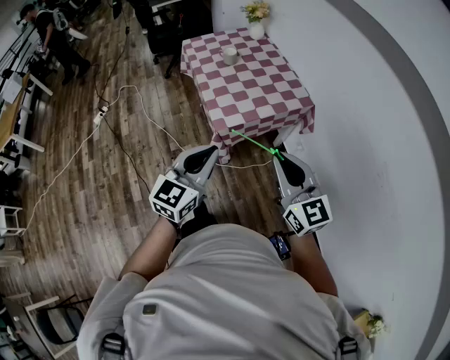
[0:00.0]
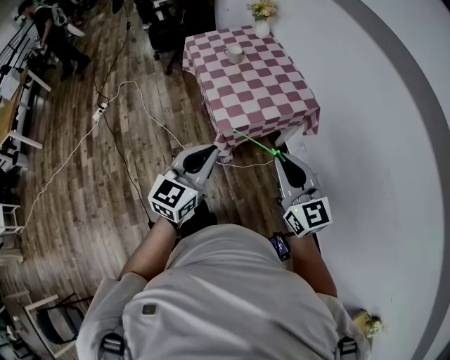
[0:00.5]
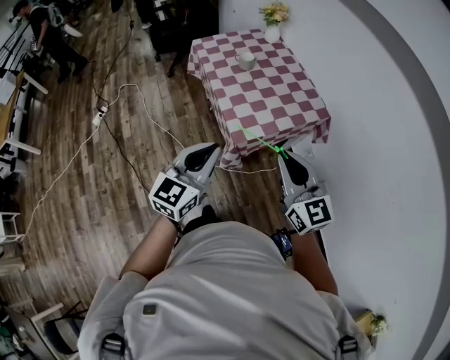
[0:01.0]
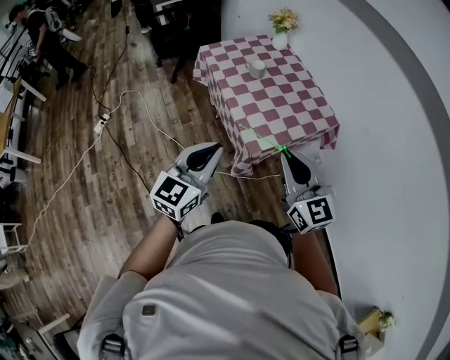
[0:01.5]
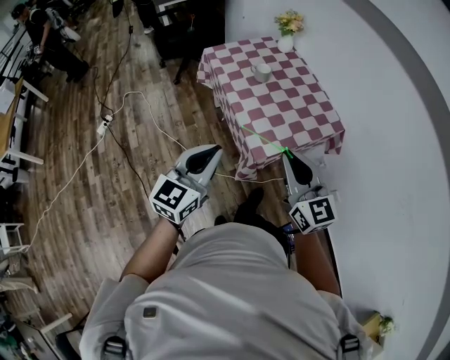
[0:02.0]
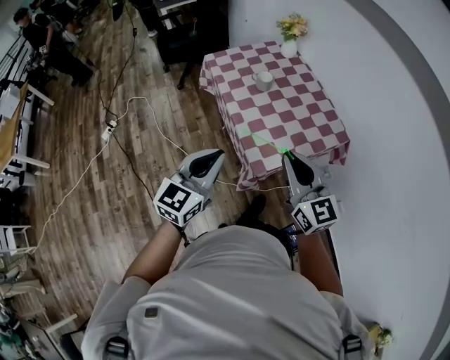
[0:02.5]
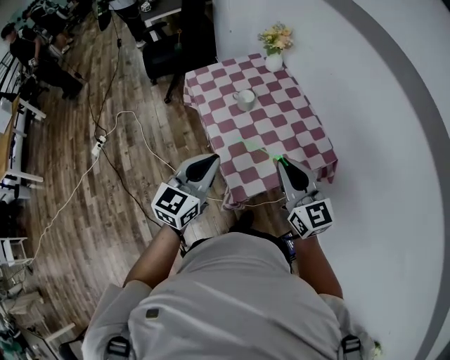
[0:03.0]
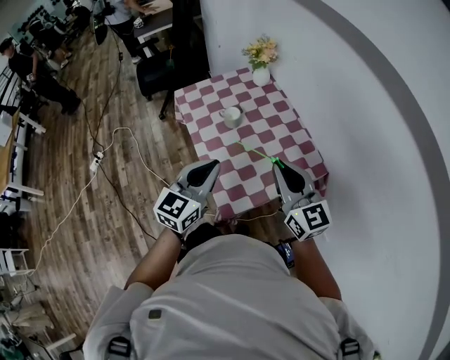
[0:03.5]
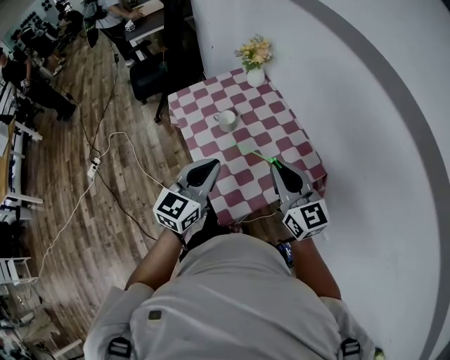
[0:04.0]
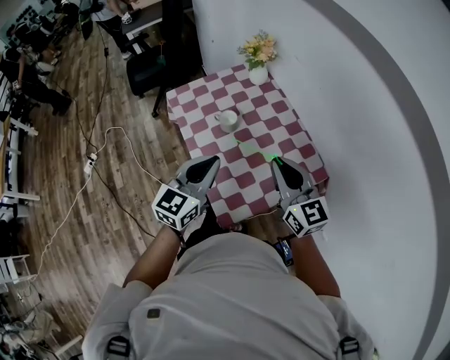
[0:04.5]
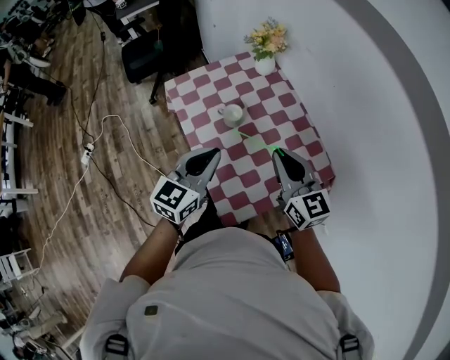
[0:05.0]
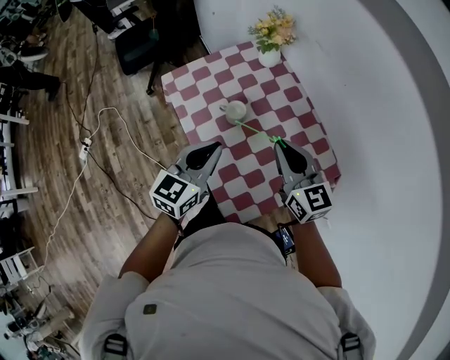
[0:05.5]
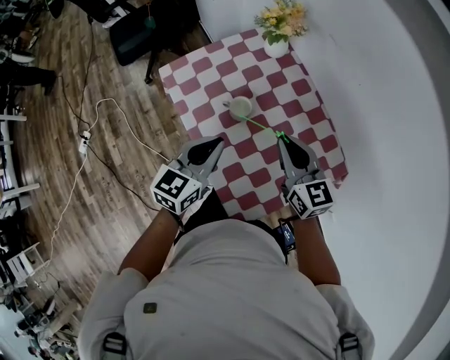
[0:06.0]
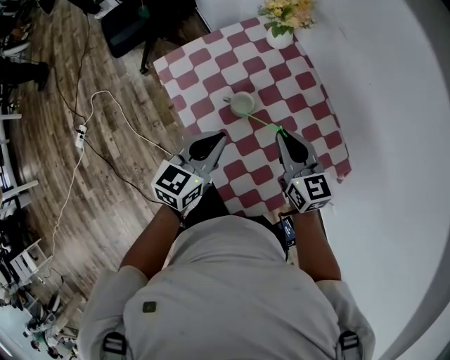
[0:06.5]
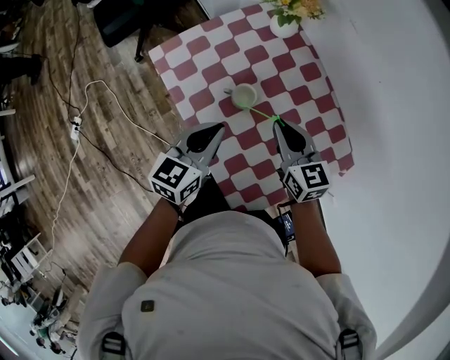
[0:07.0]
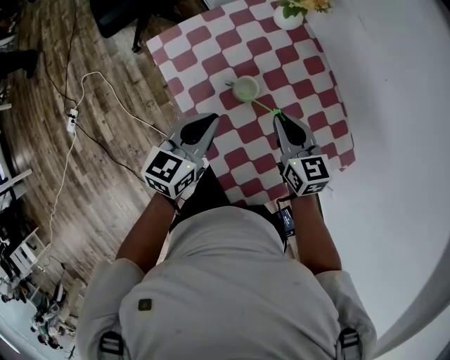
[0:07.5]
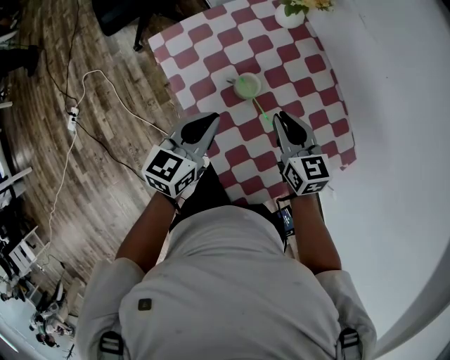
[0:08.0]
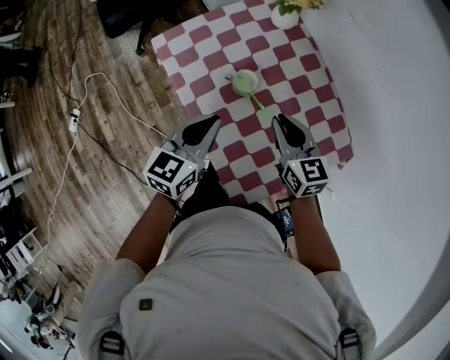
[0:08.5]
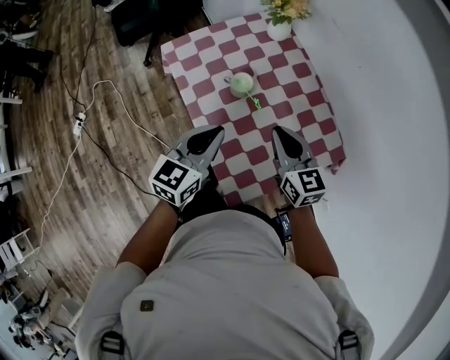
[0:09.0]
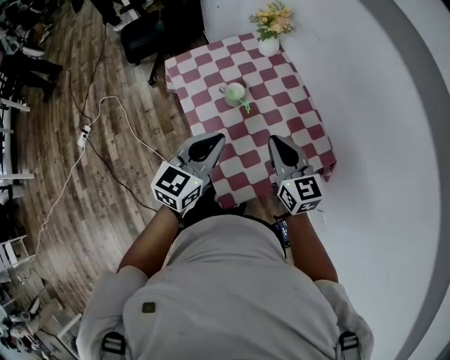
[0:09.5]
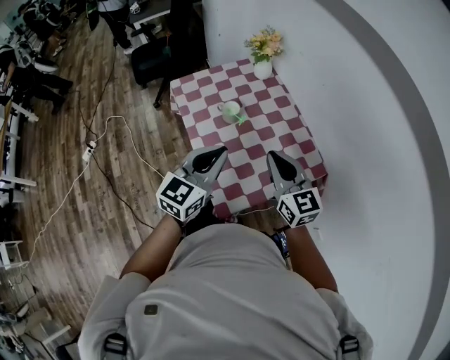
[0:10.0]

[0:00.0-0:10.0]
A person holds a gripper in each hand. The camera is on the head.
0:00.0 to 0:02.0: The grippers both shift to the left and forward by some 25 cm.
0:02.0 to 0:04.0: The two grippers go approximately 30 cm forward and to the right.
0:04.0 to 0:06.0: Both grippers move forward and downward, some 20 cm.
0:06.0 to 0:08.0: The right gripper heads downward, covering approximately 10 cm. Meanwhile the left gripper moves downward, roughly 5 cm.
0:08.0 to 0:10.0: The right gripper heads backward and upward, covering some 25 cm, and swivels approximately 20 degrees. Meanwhile the left gripper is displaced backward, upward and to the right by approximately 30 cm, and rotates roughly 20 degrees.

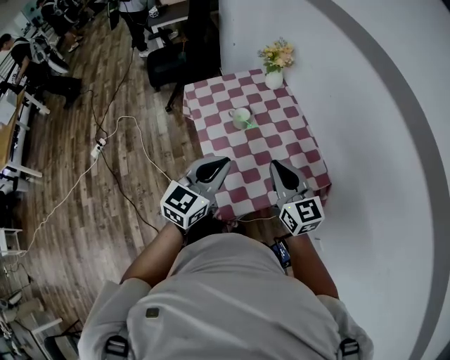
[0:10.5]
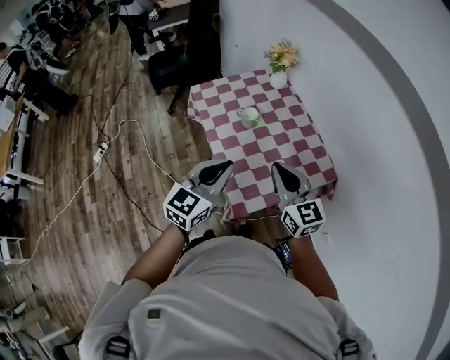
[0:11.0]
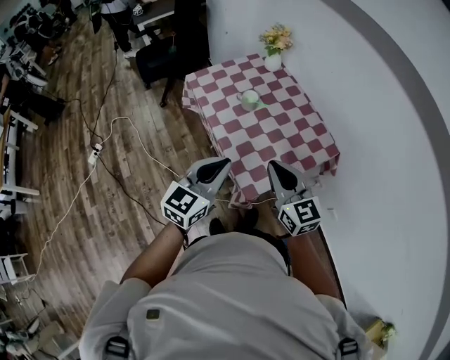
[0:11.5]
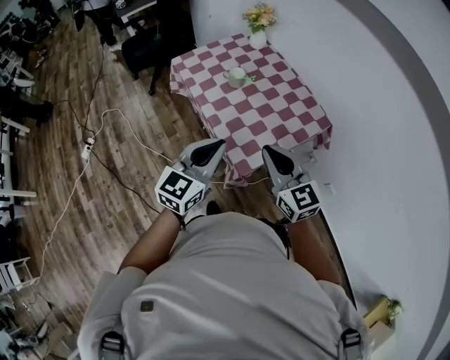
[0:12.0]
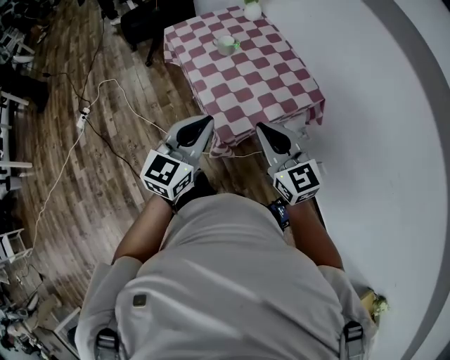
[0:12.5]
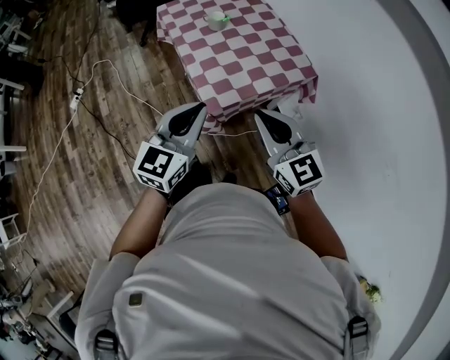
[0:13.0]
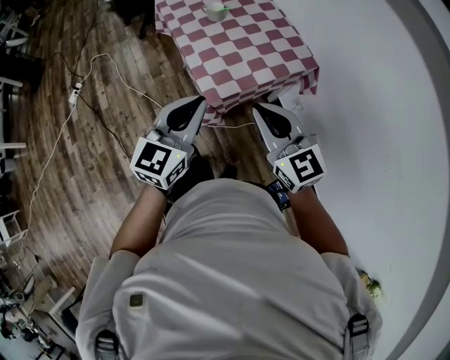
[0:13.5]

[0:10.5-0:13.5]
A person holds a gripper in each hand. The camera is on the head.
0:10.5 to 0:12.0: Both grippers move backward and to the left, roughly 15 cm.
0:12.0 to 0:13.5: The grippers both shift backward and to the right by about 15 cm.

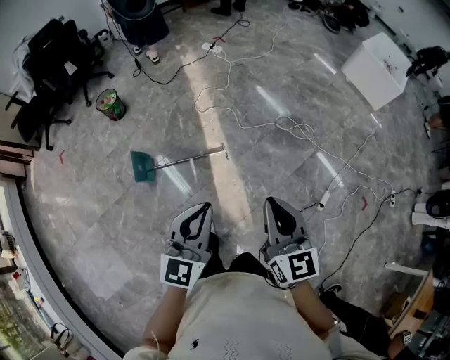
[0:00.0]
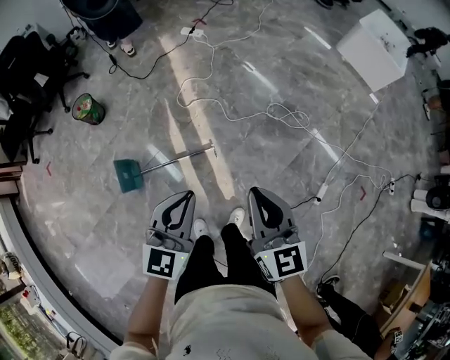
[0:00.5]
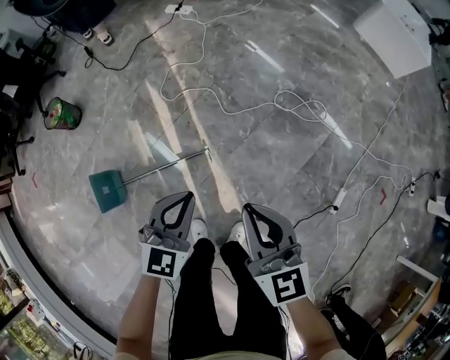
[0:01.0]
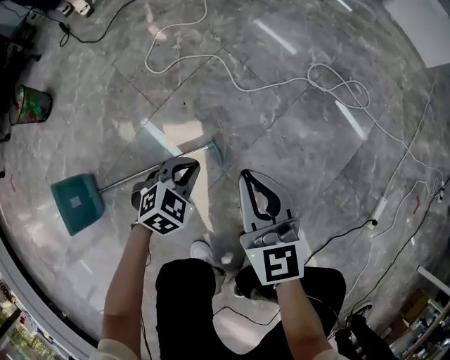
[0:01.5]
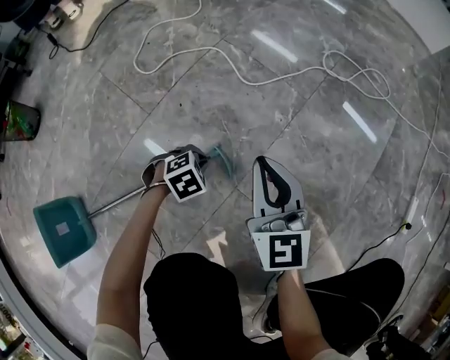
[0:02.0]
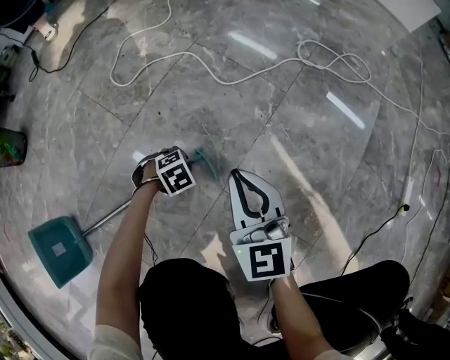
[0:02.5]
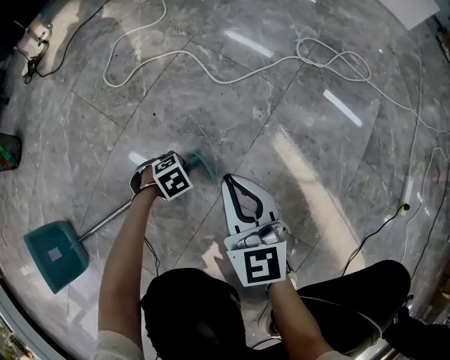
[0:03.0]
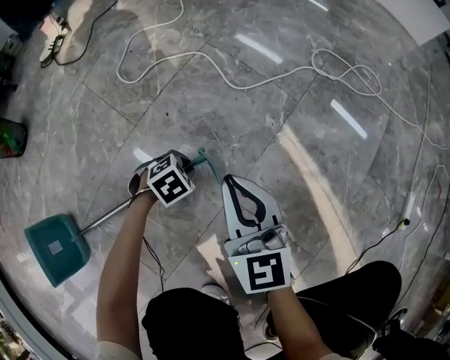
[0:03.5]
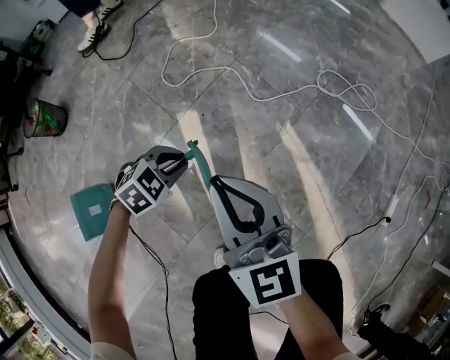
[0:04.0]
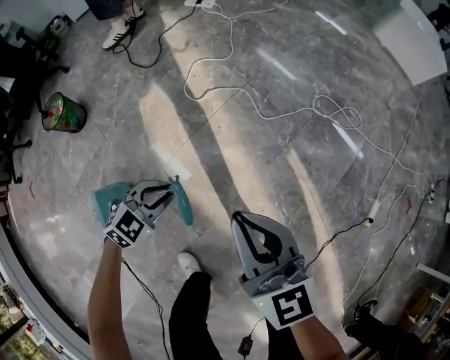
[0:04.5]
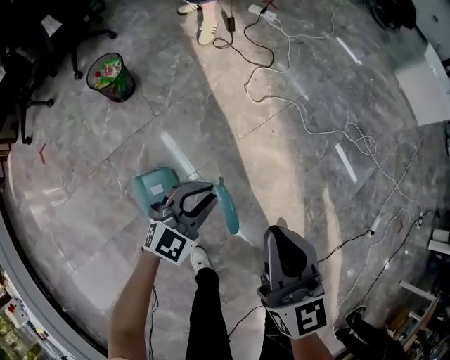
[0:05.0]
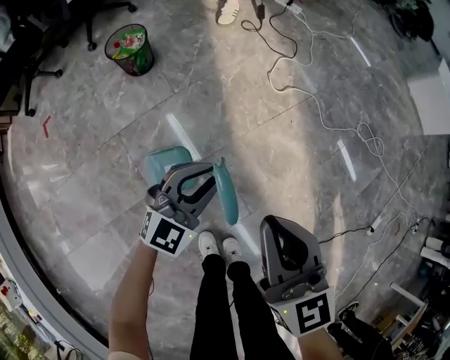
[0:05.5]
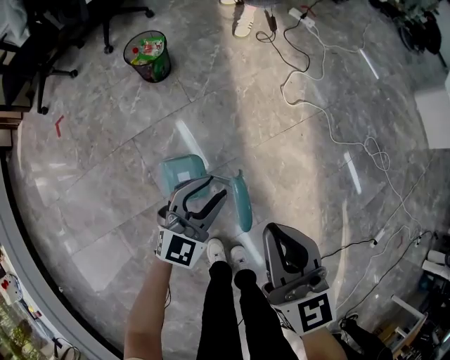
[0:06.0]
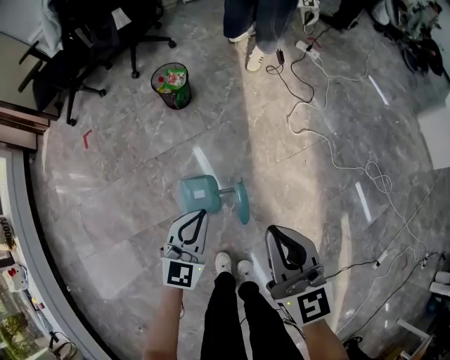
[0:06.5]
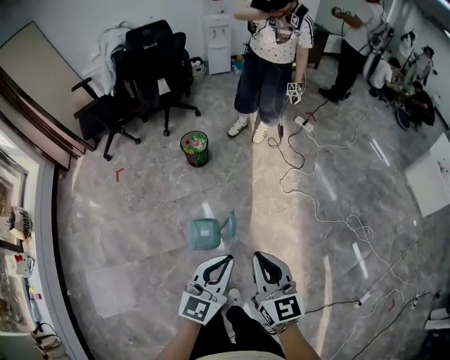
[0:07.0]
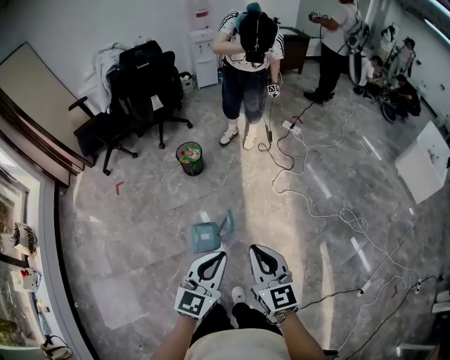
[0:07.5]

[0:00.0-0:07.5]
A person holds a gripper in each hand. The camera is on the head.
0:00.0 to 0:02.0: The pair of grippers is taken roughly 40 cm. Both grippers move downward, some 90 cm. The left gripper tilts its fingers roughly 70 degrees downward.
0:02.0 to 0:04.0: Both grippers travel together upward, about 25 cm.
0:04.0 to 0:05.5: The two grippers travel together, to the left and backward, some 50 cm. The two grippers go some 25 cm upward. The left gripper points its fingers approximately 50 degrees further upward.
0:05.5 to 0:07.5: The two grippers go roughly 40 cm upward and backward. The left gripper rotates some 30 degrees.

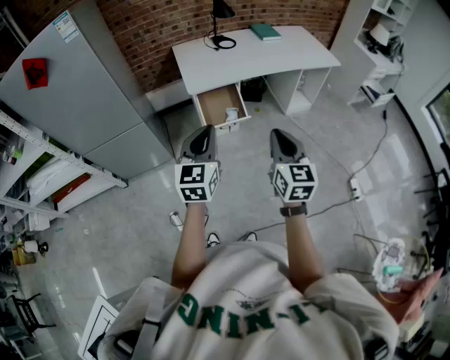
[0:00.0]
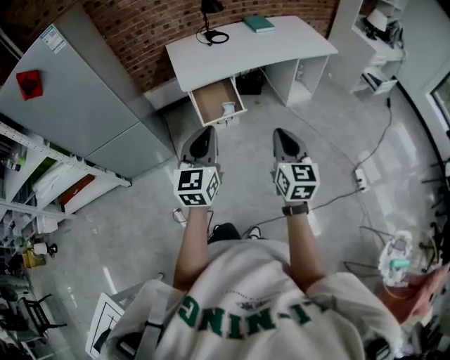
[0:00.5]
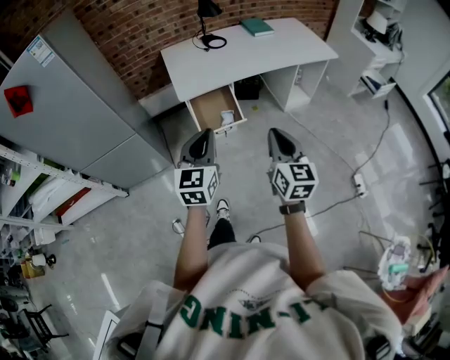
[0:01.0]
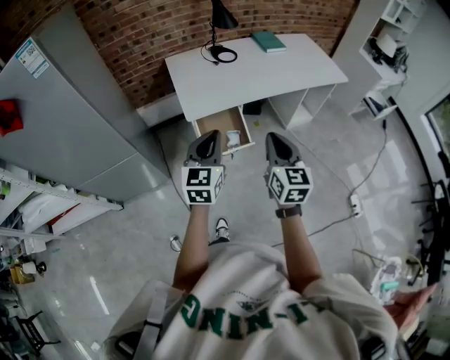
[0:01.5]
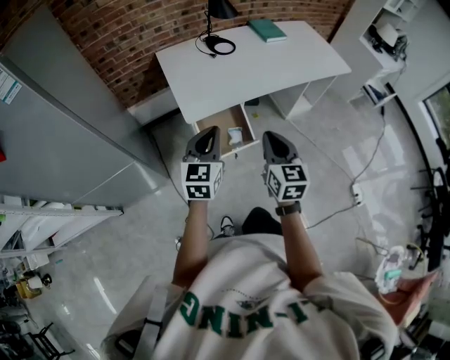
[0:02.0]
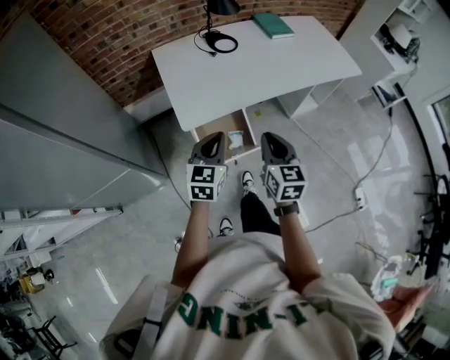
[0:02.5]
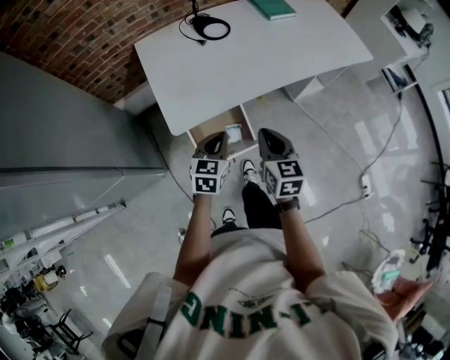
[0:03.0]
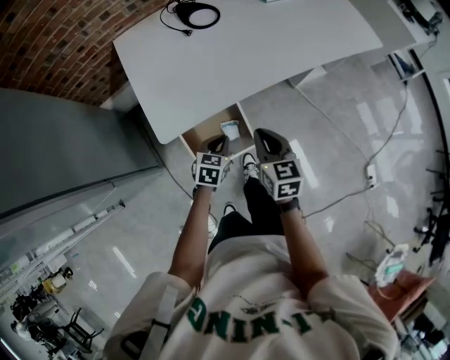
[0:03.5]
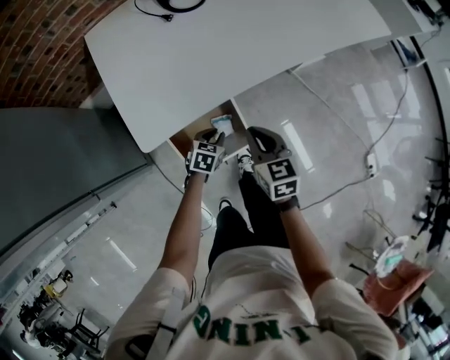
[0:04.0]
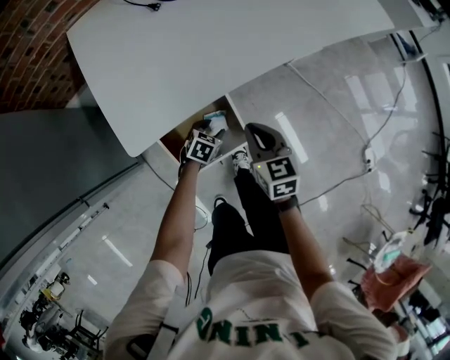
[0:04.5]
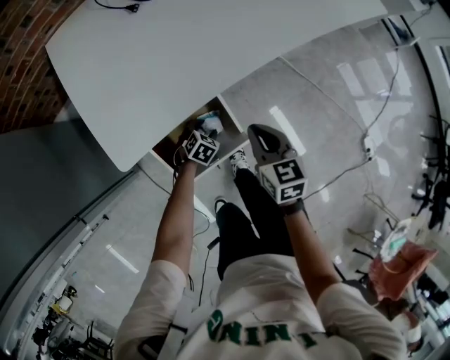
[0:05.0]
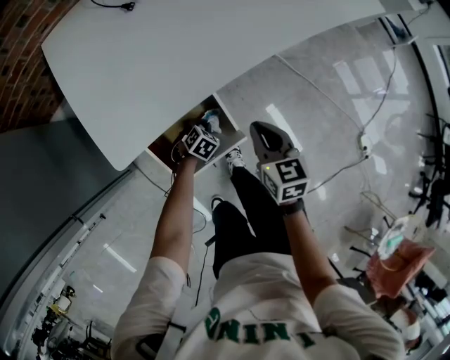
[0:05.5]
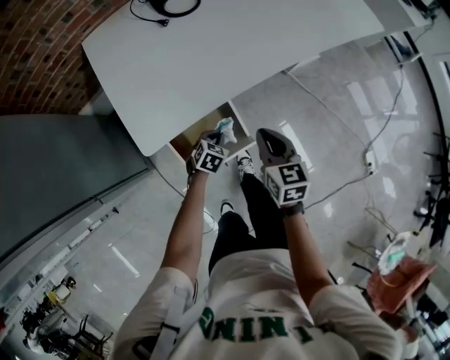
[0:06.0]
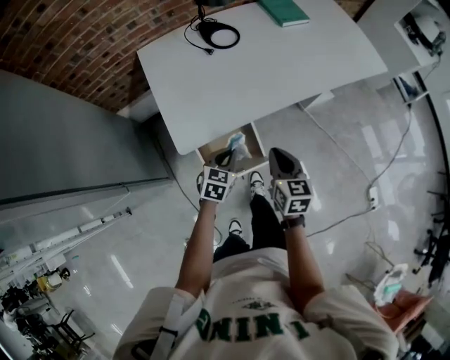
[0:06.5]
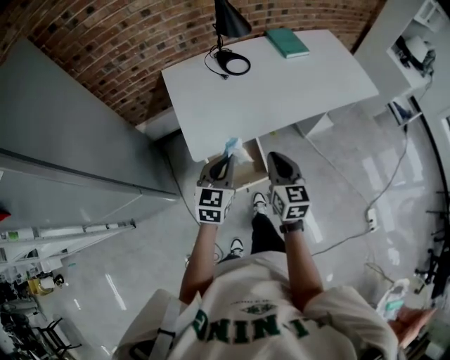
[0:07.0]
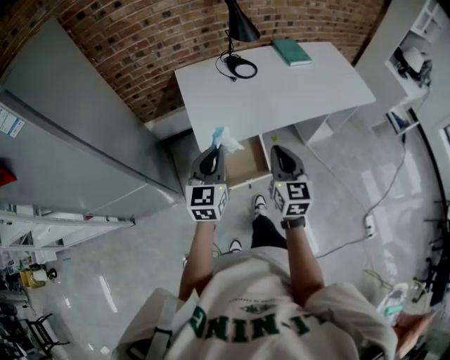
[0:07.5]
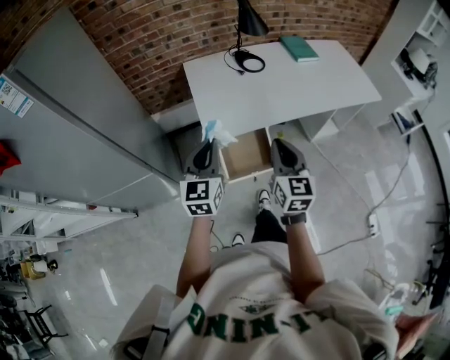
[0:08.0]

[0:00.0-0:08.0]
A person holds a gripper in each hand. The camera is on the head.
0:00.0 to 0:02.0: Both grippers move forward, roughly 30 cm.
0:02.0 to 0:04.0: The two grippers go roughly 40 cm downward and forward. The right gripper changes its angle by about 20 degrees. Meanwhile the left gripper tilts its fingers about 40 degrees downward.
0:04.0 to 0:06.0: The right gripper travels downward and back again, approximately 5 cm each way. Meanwhile the left gripper goes downward and returns, some 15 cm each way, and opens, then closes again.
0:06.0 to 0:08.0: The right gripper moves upward and backward, some 30 cm, and swivels about 30 degrees. The left gripper is displaced upward by some 50 cm, and angles its fingers upward, by approximately 50 degrees.
